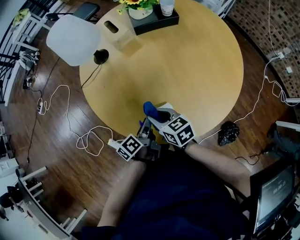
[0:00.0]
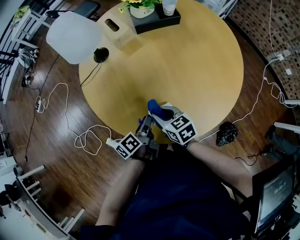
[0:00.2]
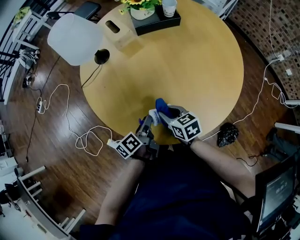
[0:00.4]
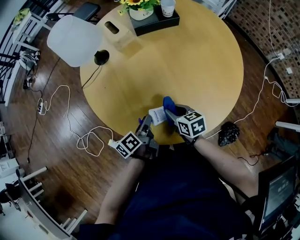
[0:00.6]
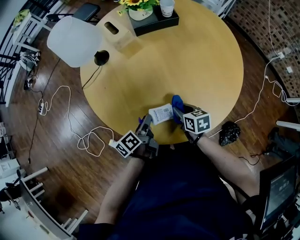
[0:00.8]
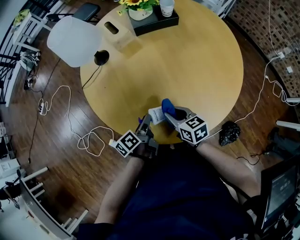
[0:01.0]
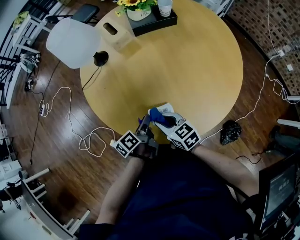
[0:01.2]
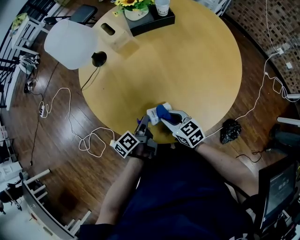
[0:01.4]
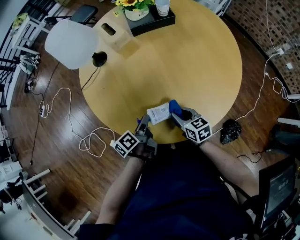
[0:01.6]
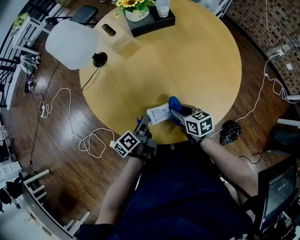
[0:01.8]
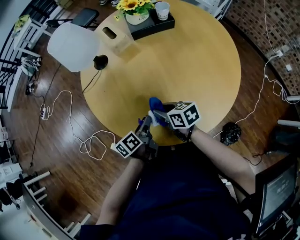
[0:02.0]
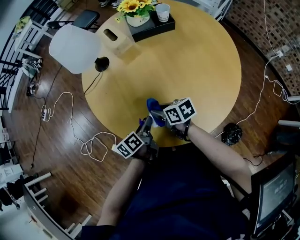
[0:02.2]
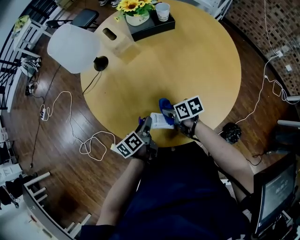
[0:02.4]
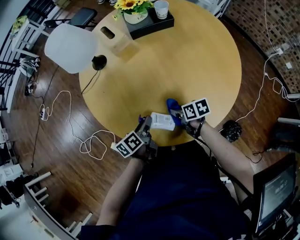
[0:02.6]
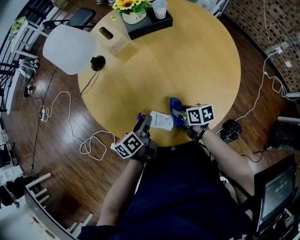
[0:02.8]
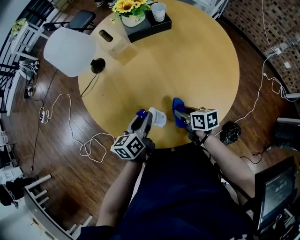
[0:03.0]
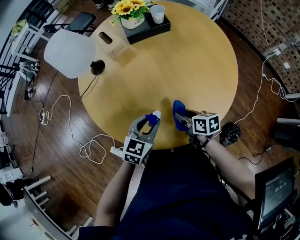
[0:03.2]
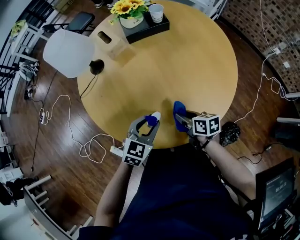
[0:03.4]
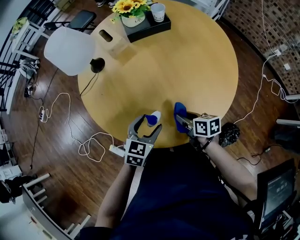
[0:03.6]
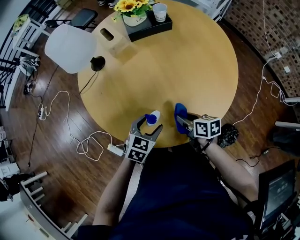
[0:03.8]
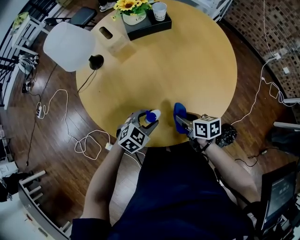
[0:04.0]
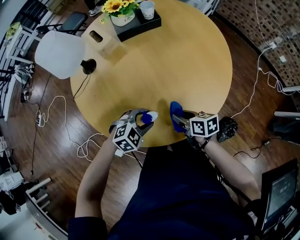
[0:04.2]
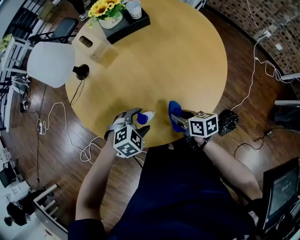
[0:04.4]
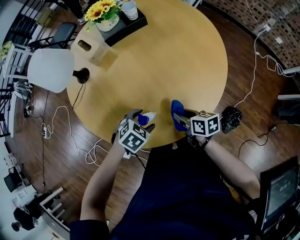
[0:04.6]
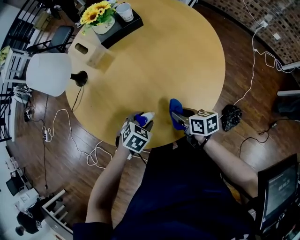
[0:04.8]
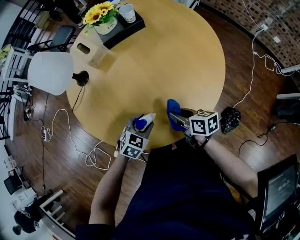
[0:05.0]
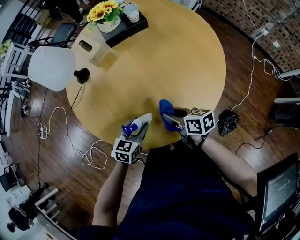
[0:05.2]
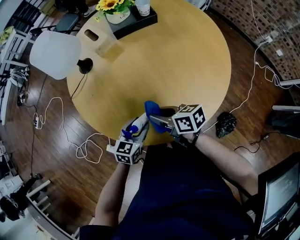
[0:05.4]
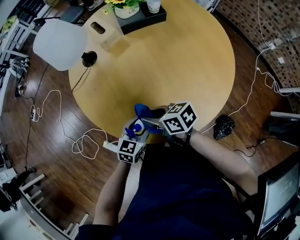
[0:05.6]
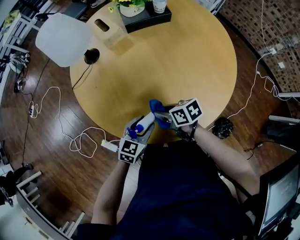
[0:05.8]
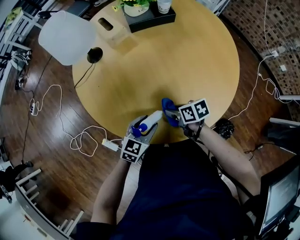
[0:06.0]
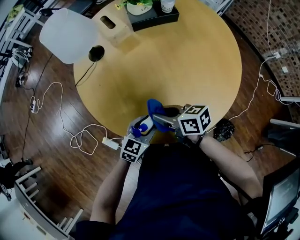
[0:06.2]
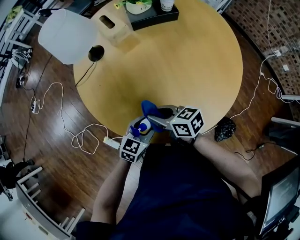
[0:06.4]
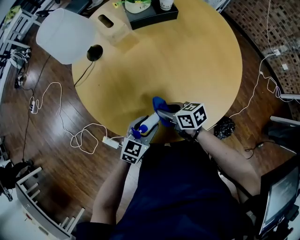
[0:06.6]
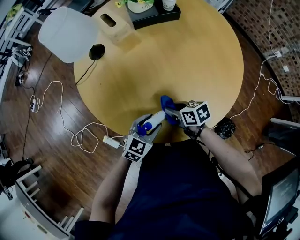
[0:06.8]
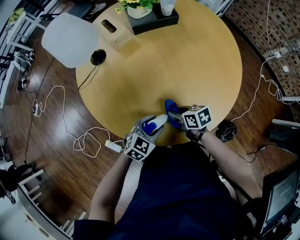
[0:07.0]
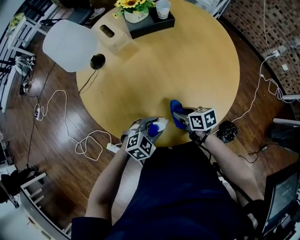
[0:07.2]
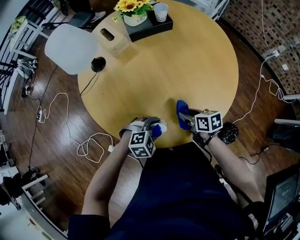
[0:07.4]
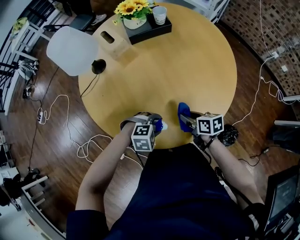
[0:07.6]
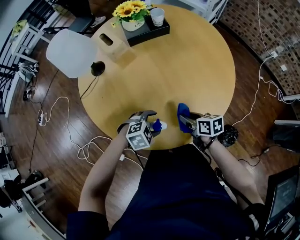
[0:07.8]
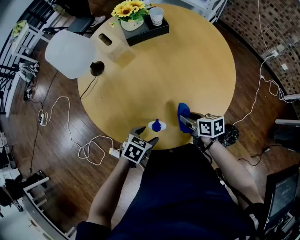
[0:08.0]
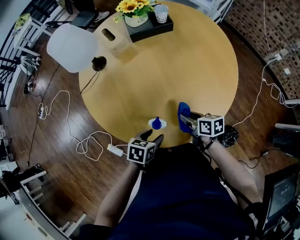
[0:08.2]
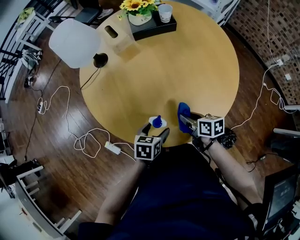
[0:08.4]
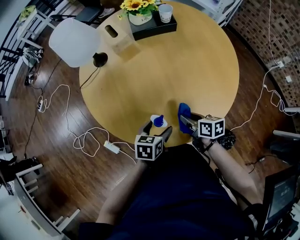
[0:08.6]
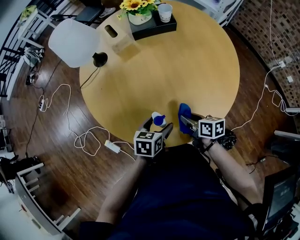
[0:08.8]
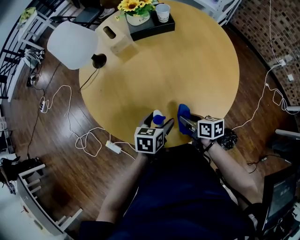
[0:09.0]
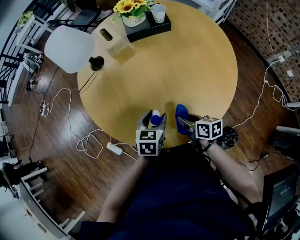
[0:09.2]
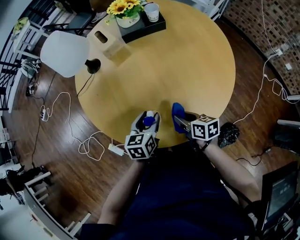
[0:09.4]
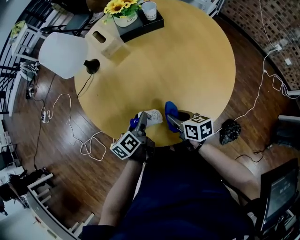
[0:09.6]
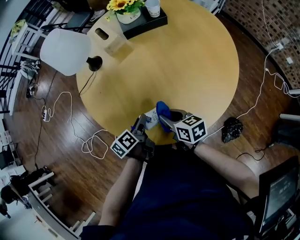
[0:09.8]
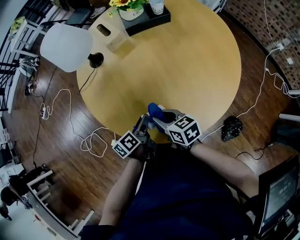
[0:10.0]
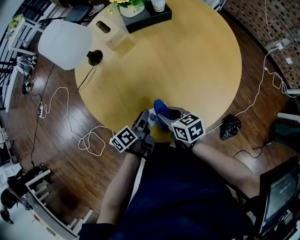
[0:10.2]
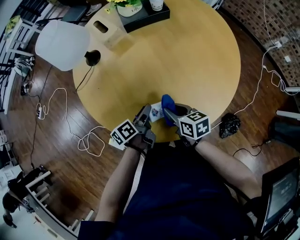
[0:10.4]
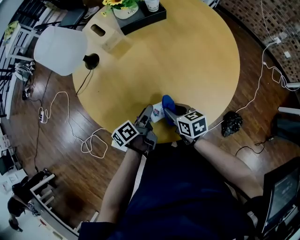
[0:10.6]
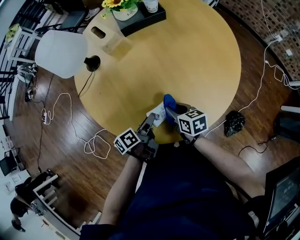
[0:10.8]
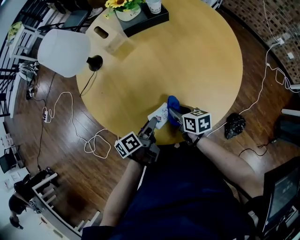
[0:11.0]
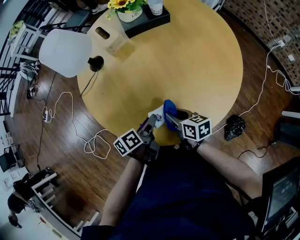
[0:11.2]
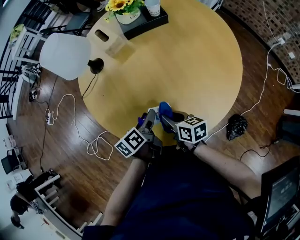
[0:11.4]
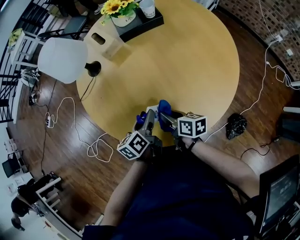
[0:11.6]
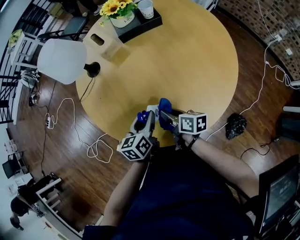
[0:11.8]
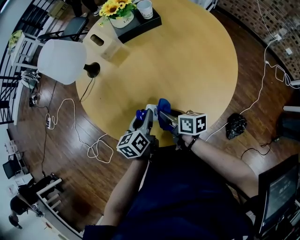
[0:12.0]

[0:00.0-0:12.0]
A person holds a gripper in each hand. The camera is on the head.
0:00.0 to 0:01.6: The right gripper moves left and right over about 10 cm, changing direction 2 times.
0:01.6 to 0:03.0: The right gripper goes to the left and returns, about 10 cm each way, and rotates some 20 degrees. Meanwhile the left gripper goes approximately 5 cm upward, and turns by some 40 degrees.
0:03.0 to 0:04.4: The right gripper shifts by roughly 5 cm. The left gripper travels backward by approximately 5 cm, rotates around the line of its fingers by roughly 80 degrees, clockwise from behind, and opens its fingers.
0:04.4 to 0:06.0: The left gripper tips its fingers upward by about 30 degrees; the right gripper rotates roughly 20 degrees.
0:06.0 to 0:07.6: The left gripper ends up roughly 5 cm from where it was, and angles its fingers downward, by some 30 degrees. Meanwhile the right gripper reaches roughly 10 cm upward, then returns.
0:07.6 to 0:09.0: The left gripper changes place by roughly 10 cm, rolls counterclockwise, seen from behind, by approximately 80 degrees, and opens.
0:09.0 to 0:10.4: The grippers both shift to the left by about 10 cm. The left gripper rotates around the line of its fingers by approximately 40 degrees, counterclockwise from behind, and closes up.
0:10.4 to 0:12.0: The left gripper shifts some 5 cm upward, and swivels approximately 30 degrees. Meanwhile the right gripper rotates about 20 degrees.

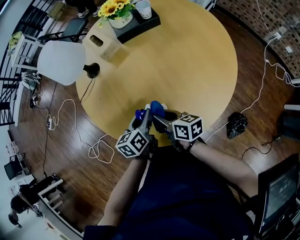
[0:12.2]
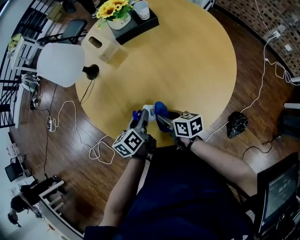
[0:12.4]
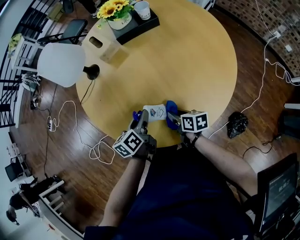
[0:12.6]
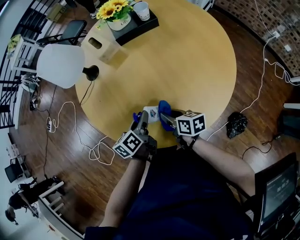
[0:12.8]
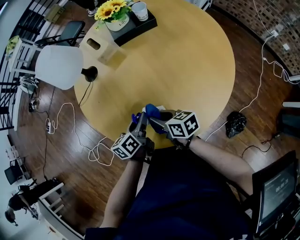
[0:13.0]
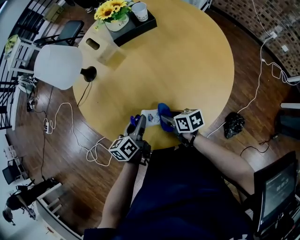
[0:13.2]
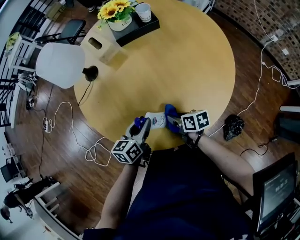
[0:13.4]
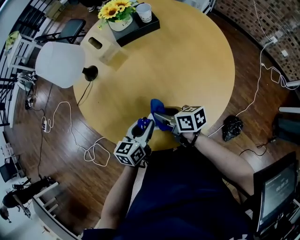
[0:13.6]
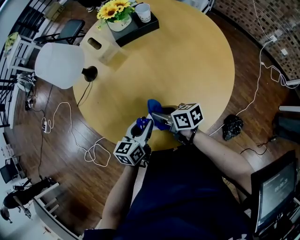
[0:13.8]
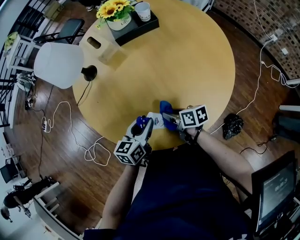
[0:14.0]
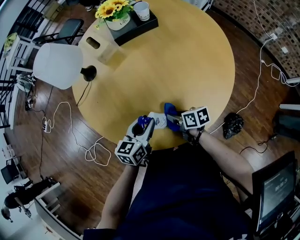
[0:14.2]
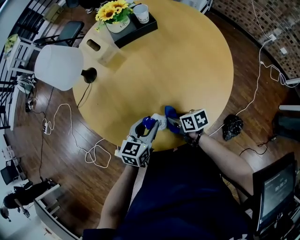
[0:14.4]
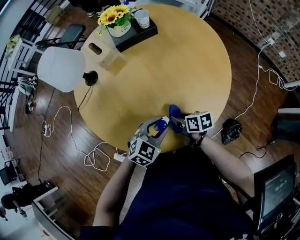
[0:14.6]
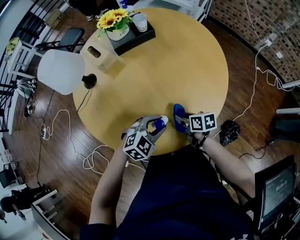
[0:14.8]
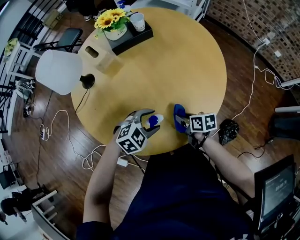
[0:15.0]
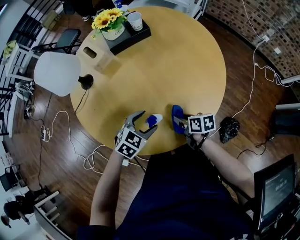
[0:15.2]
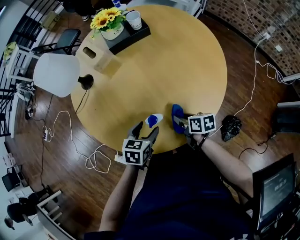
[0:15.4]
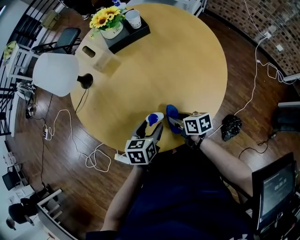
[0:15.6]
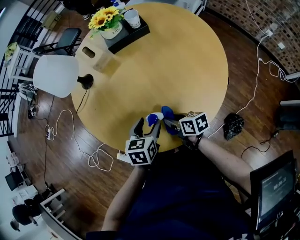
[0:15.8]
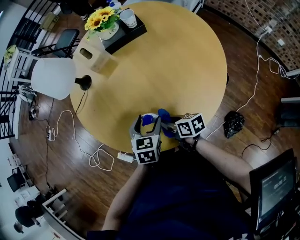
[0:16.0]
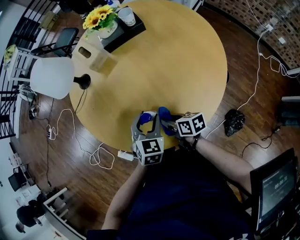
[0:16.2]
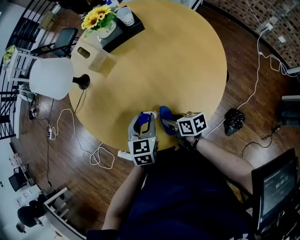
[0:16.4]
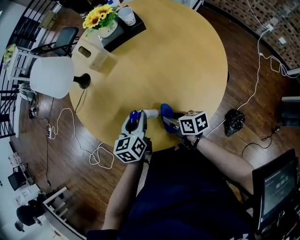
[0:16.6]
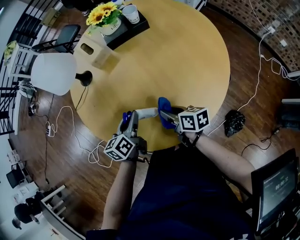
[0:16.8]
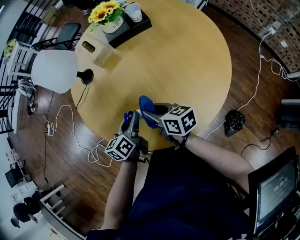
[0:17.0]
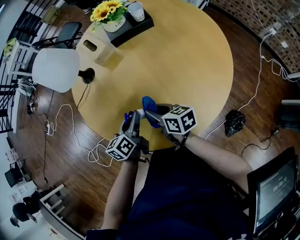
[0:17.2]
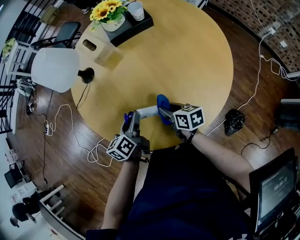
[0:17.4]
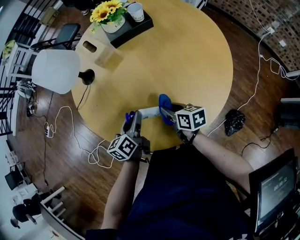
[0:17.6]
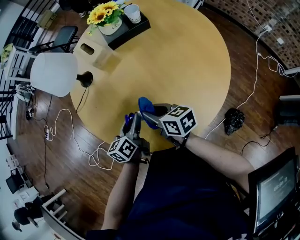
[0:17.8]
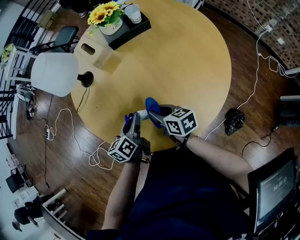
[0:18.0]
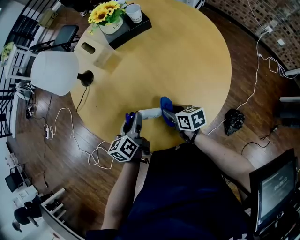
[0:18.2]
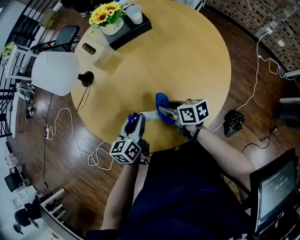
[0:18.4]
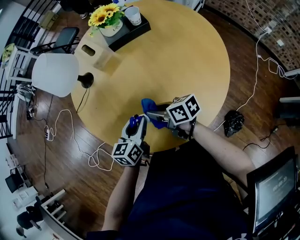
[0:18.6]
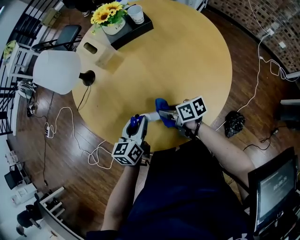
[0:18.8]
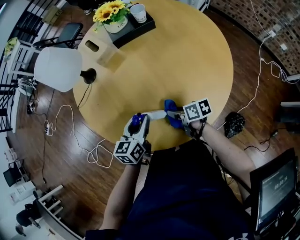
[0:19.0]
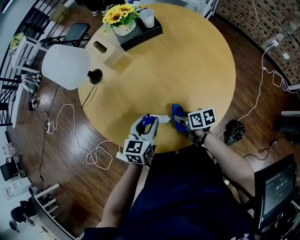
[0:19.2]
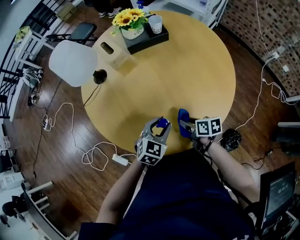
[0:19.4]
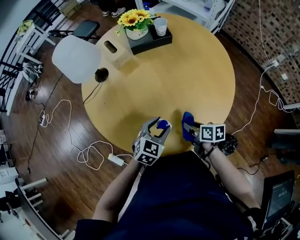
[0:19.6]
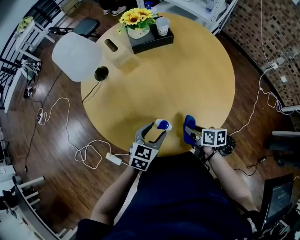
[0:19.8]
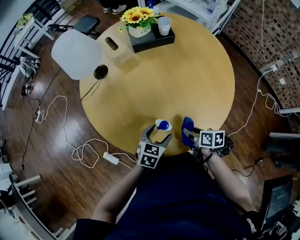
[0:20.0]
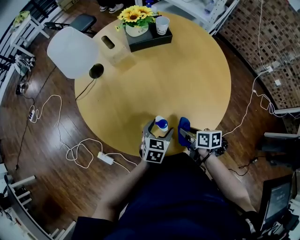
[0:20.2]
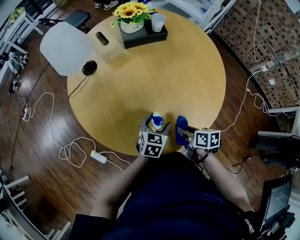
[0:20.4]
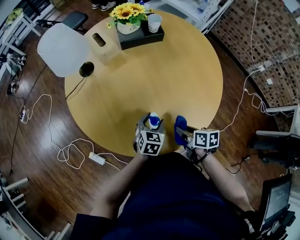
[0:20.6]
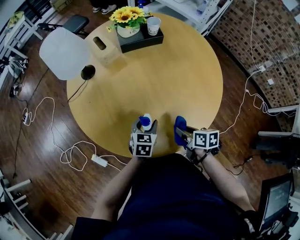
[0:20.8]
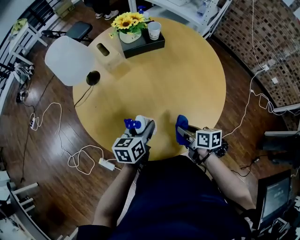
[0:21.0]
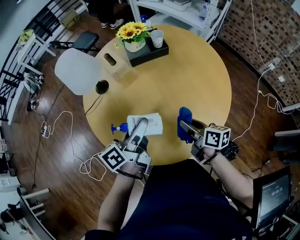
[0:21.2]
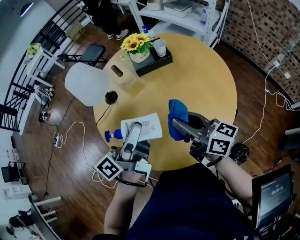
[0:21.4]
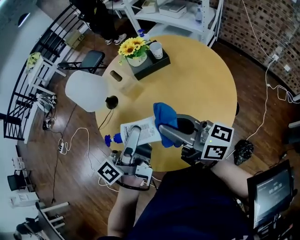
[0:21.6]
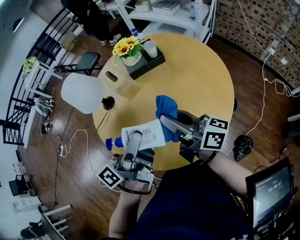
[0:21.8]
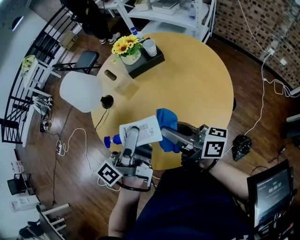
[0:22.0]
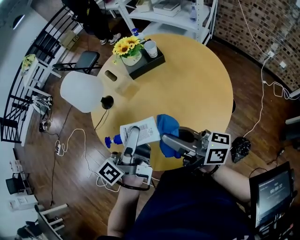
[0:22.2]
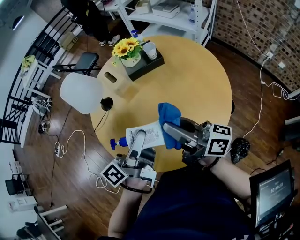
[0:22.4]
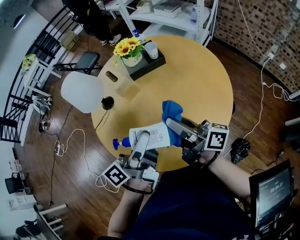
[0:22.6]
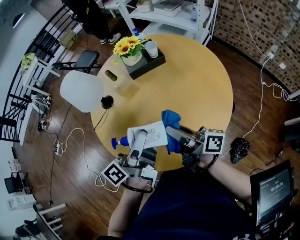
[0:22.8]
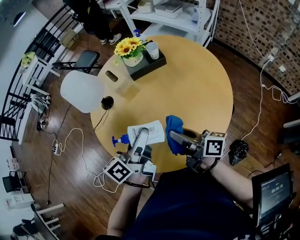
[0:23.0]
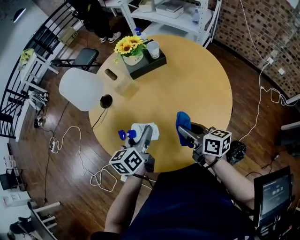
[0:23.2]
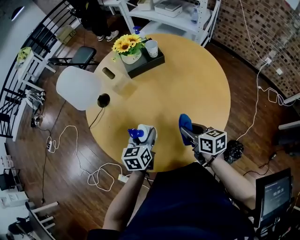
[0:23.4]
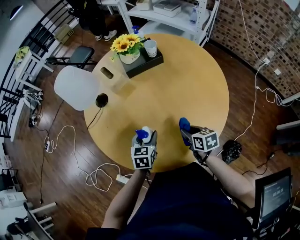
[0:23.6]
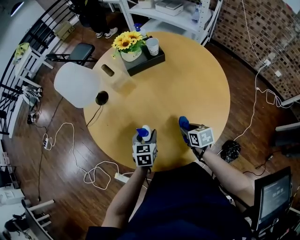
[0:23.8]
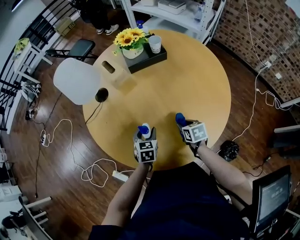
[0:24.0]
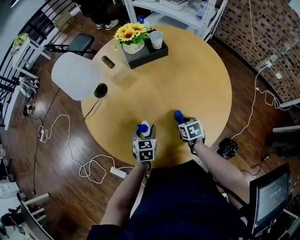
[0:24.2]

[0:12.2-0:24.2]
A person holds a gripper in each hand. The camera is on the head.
0:12.2 to 0:13.8: The right gripper swings up and down, about 10 cm each way, with 3 reversals.
0:13.8 to 0:15.2: The right gripper moves approximately 15 cm, and swivels roughly 20 degrees, while the left gripper rolls clockwise, seen from behind, by roughly 40 degrees, and opens.
0:15.2 to 0:16.6: The left gripper moves about 5 cm, turns by approximately 60 degrees, and closes its fingers.
0:16.6 to 0:18.2: The left gripper travels to the left by about 5 cm. The right gripper moves up and down over roughly 10 cm, changing direction 3 times.
0:18.2 to 0:19.8: The left gripper heads backward and to the right, covering some 10 cm, and turns by roughly 40 degrees, while the right gripper shifts about 10 cm to the right and backward.
0:19.8 to 0:21.2: The two grippers go approximately 15 cm upward and forward. The right gripper turns by some 20 degrees. Meanwhile the left gripper twists some 60 degrees counterclockwise, seen from behind.
0:21.2 to 0:22.6: The right gripper goes roughly 15 cm upward, and angles its fingers upward, by about 30 degrees; the left gripper goes approximately 10 cm upward.
0:22.6 to 0:24.2: Both grippers move downward, roughly 30 cm. The left gripper angles its fingers downward, by approximately 50 degrees; the right gripper angles its fingers downward, by approximately 70 degrees.
